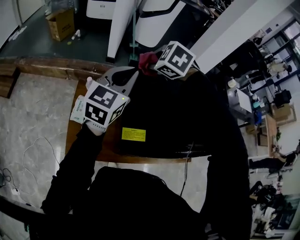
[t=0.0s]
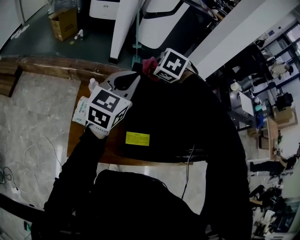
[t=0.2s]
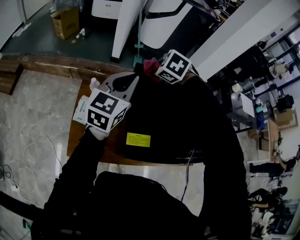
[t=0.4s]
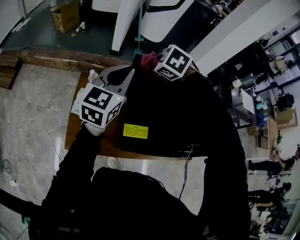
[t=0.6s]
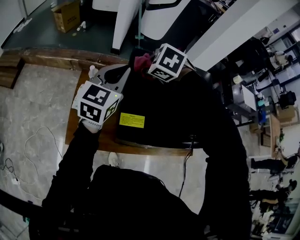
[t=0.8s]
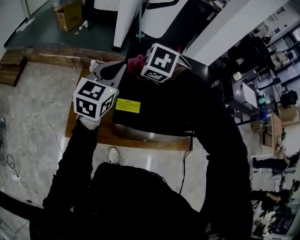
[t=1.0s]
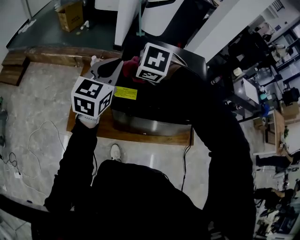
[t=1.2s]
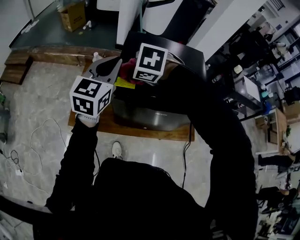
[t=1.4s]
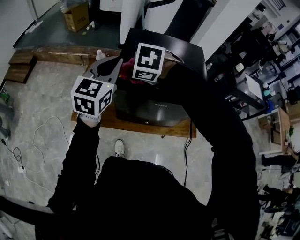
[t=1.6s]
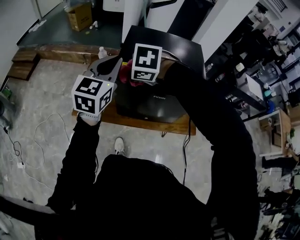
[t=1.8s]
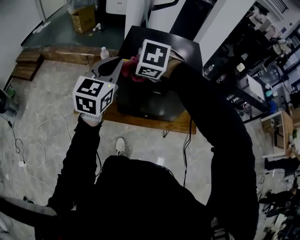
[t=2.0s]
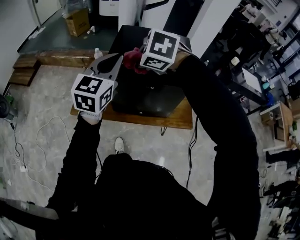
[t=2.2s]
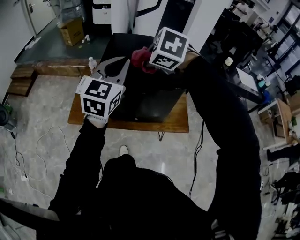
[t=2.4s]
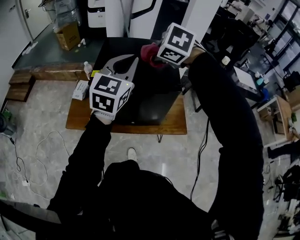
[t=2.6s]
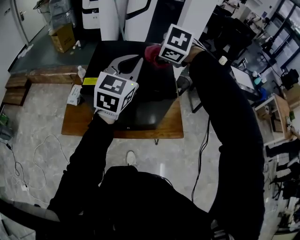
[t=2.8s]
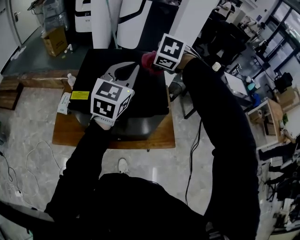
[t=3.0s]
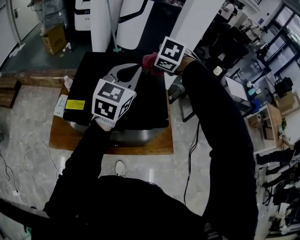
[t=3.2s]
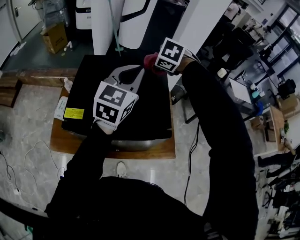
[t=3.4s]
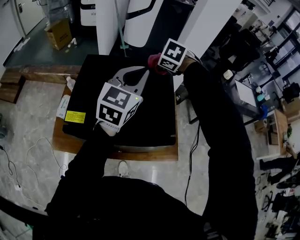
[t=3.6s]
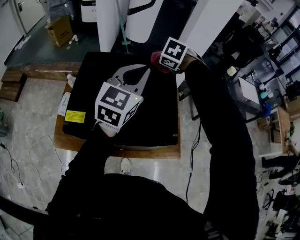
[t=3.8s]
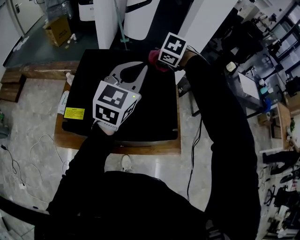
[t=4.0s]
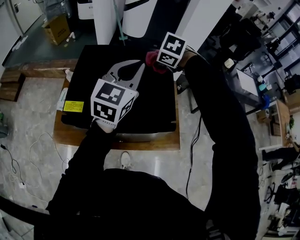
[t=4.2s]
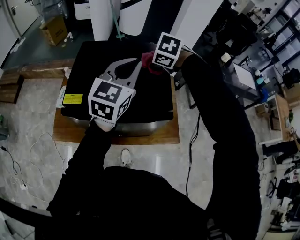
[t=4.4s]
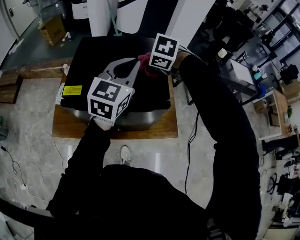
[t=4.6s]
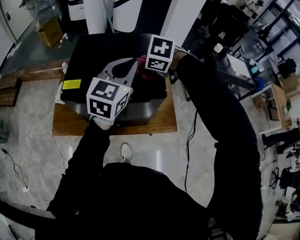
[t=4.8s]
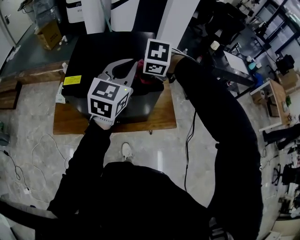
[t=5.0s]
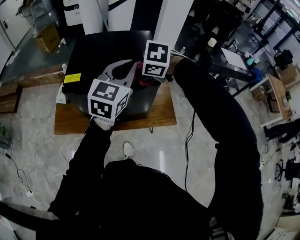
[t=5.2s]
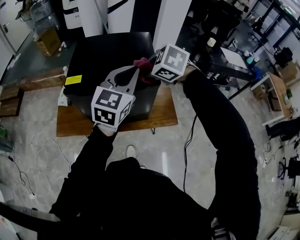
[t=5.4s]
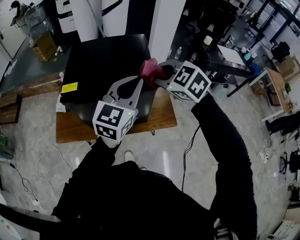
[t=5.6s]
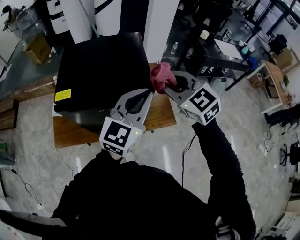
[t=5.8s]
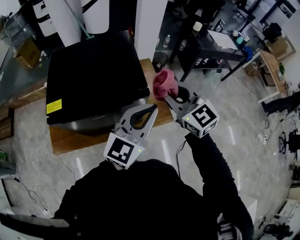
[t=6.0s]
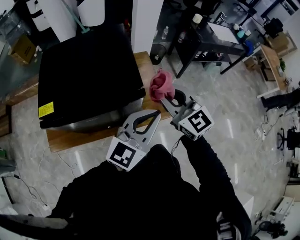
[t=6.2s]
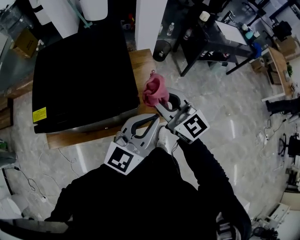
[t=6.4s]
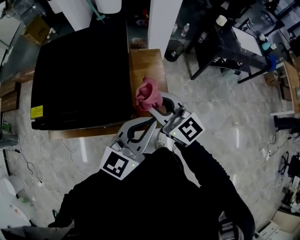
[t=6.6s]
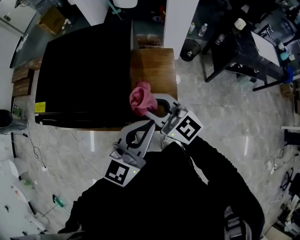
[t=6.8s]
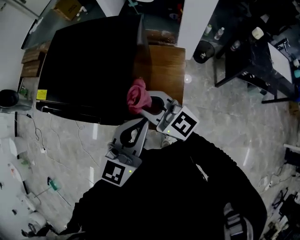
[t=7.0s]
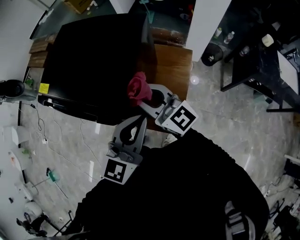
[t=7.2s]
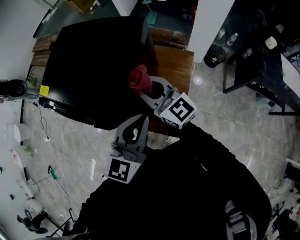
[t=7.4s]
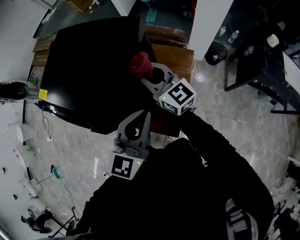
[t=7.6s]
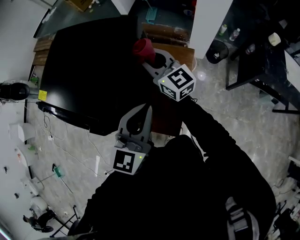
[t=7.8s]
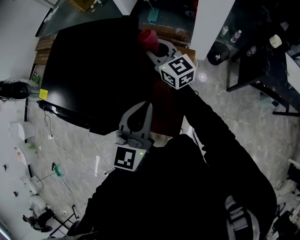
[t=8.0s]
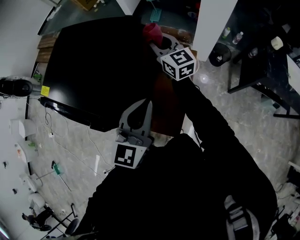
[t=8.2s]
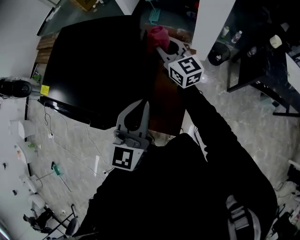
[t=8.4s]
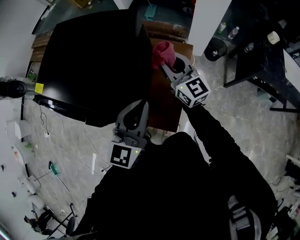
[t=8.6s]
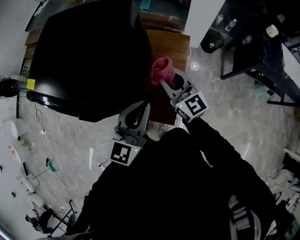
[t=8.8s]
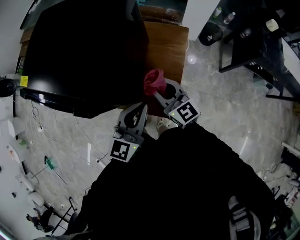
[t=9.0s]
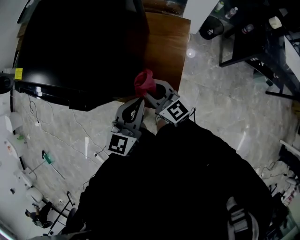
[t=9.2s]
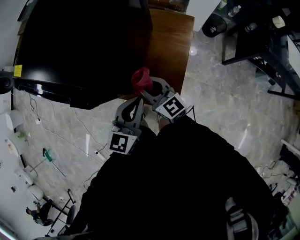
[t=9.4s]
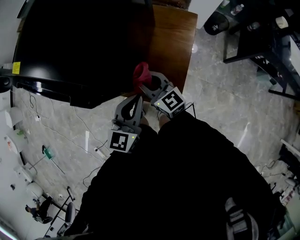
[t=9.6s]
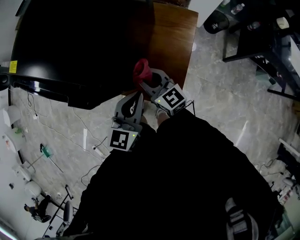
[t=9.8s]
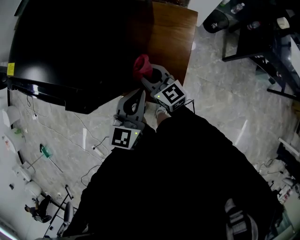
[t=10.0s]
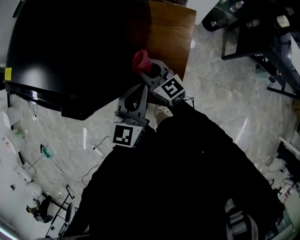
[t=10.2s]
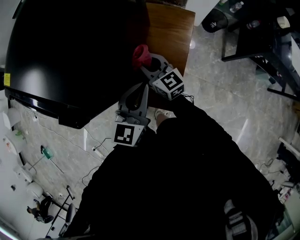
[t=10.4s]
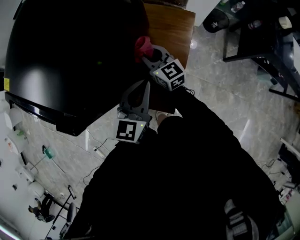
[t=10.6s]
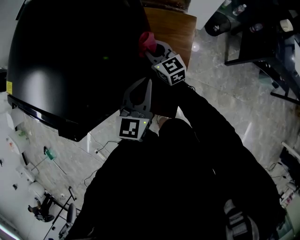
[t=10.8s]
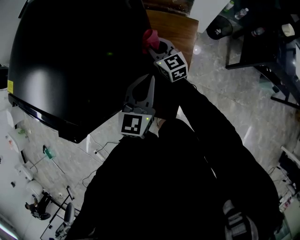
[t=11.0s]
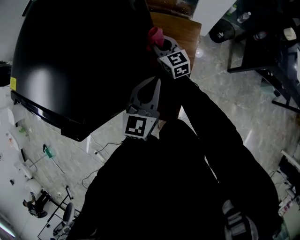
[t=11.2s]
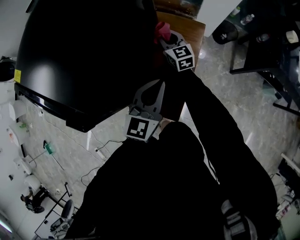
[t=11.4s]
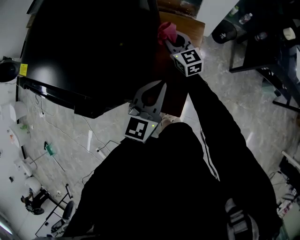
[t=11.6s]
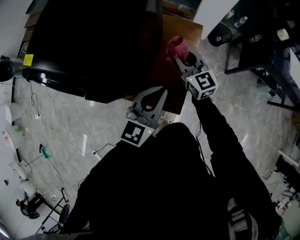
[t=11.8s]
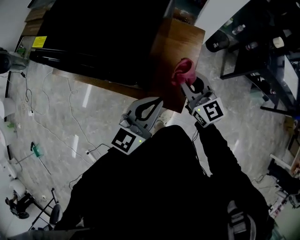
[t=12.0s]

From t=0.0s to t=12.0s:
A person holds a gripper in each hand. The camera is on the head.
From t=0.0s to t=1.6s: Both grippers travel together backward, roughly 25 cm.
From t=1.6s to t=3.0s: The right gripper shifts by some 30 cm, and turns by roughly 20 degrees; the left gripper moves some 25 cm.
From t=3.0s to t=4.4s: The right gripper travels downward by approximately 10 cm, and goes forward and returns, some 20 cm each way. The left gripper moves forward, approximately 5 cm.
From t=4.4s to t=6.0s: The left gripper ends up about 25 cm from where it was, and swivels some 30 degrees; the right gripper moves some 25 cm, and angles its fingers upward, by about 60 degrees.
From t=6.0s to t=7.6s: The right gripper changes place by roughly 30 cm, and changes its angle by roughly 50 degrees, while the left gripper moves about 25 cm, and swivels about 40 degrees.
From t=7.6s to t=9.0s: The right gripper is displaced downward and backward by approximately 20 cm. Meanwhile the left gripper travels downward by roughly 10 cm.
From t=9.0s to t=10.4s: The left gripper is displaced downward by roughly 5 cm. Meanwhile the right gripper moves downward and forward, about 15 cm.
From t=10.4s to t=12.0s: The right gripper shifts about 20 cm upward and backward; the left gripper shifts some 15 cm backward, upward and to the left.

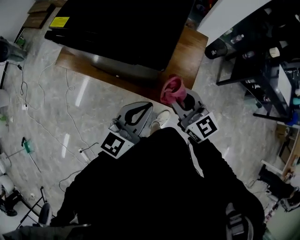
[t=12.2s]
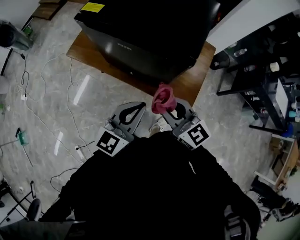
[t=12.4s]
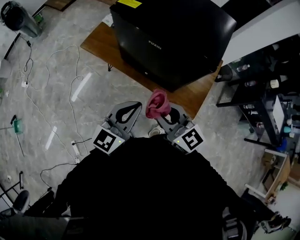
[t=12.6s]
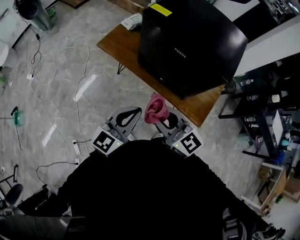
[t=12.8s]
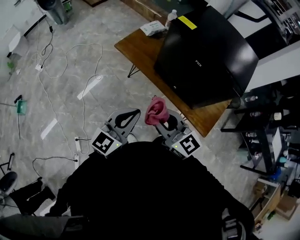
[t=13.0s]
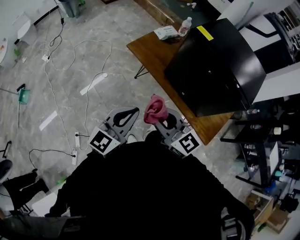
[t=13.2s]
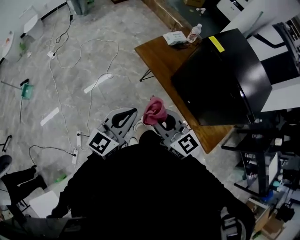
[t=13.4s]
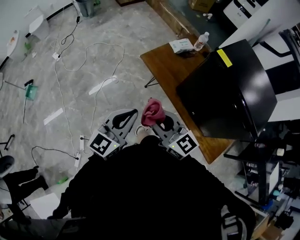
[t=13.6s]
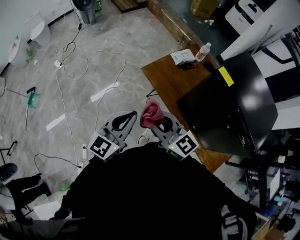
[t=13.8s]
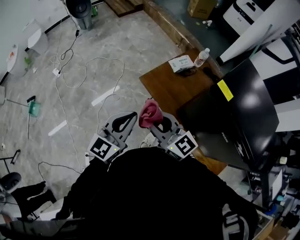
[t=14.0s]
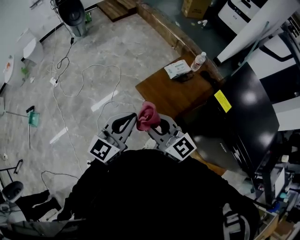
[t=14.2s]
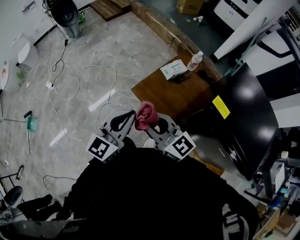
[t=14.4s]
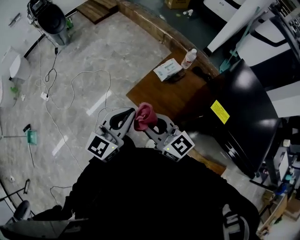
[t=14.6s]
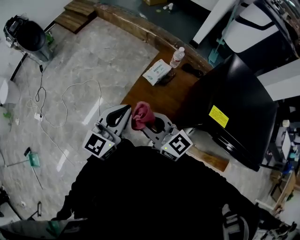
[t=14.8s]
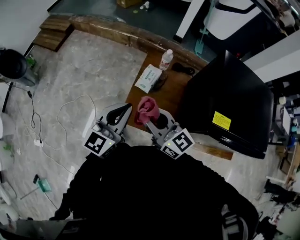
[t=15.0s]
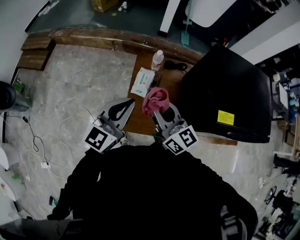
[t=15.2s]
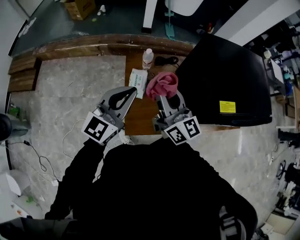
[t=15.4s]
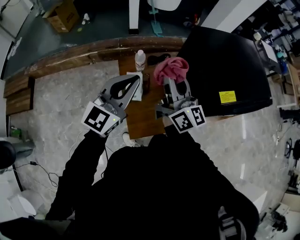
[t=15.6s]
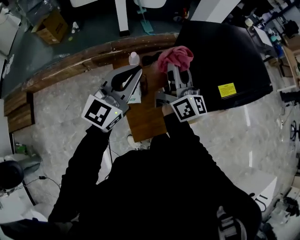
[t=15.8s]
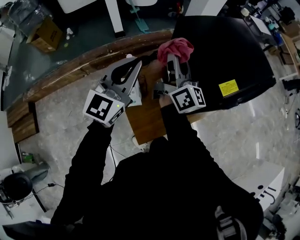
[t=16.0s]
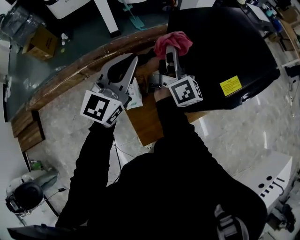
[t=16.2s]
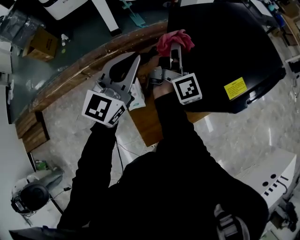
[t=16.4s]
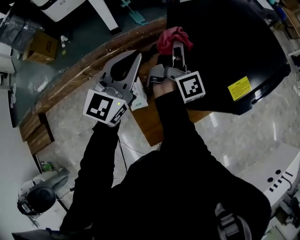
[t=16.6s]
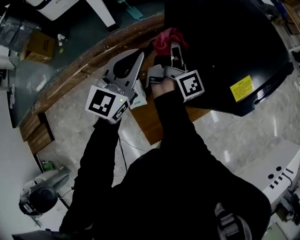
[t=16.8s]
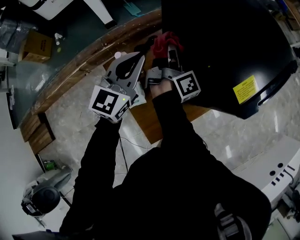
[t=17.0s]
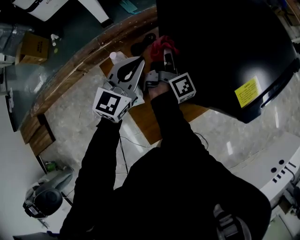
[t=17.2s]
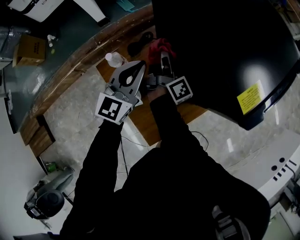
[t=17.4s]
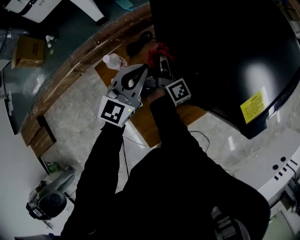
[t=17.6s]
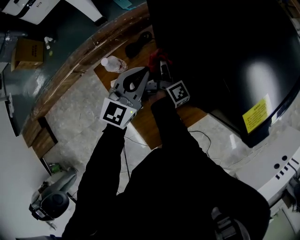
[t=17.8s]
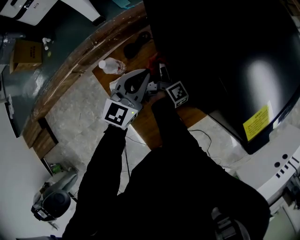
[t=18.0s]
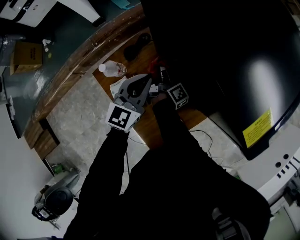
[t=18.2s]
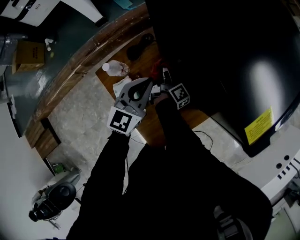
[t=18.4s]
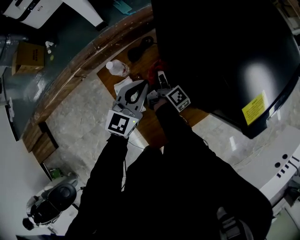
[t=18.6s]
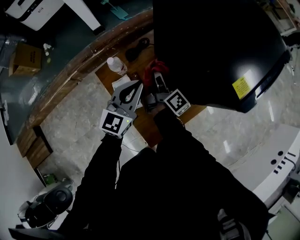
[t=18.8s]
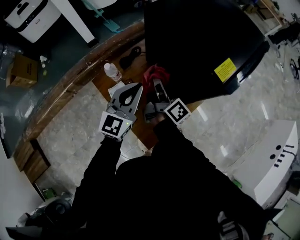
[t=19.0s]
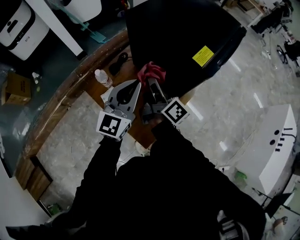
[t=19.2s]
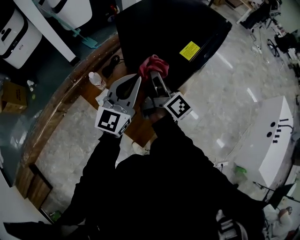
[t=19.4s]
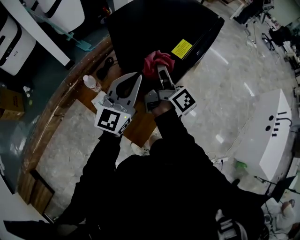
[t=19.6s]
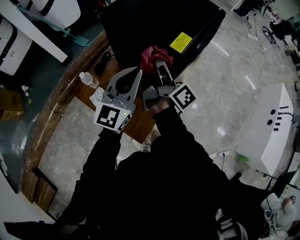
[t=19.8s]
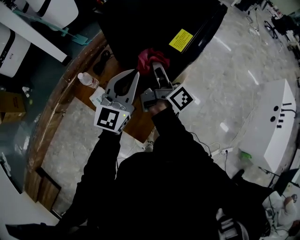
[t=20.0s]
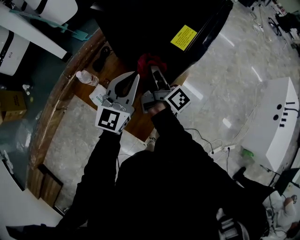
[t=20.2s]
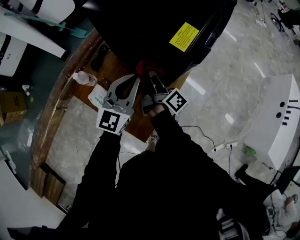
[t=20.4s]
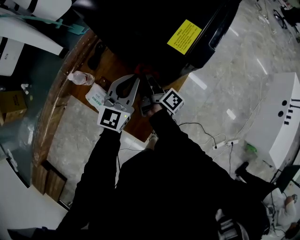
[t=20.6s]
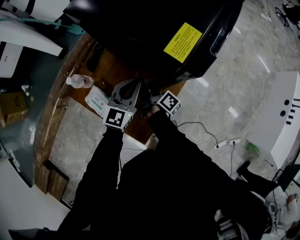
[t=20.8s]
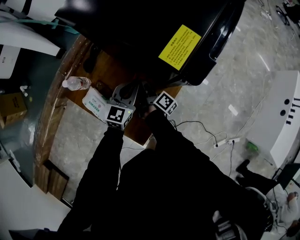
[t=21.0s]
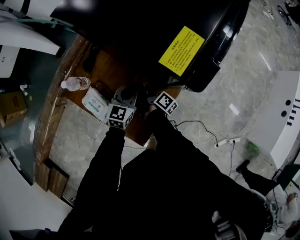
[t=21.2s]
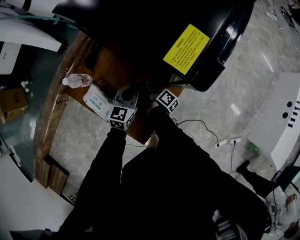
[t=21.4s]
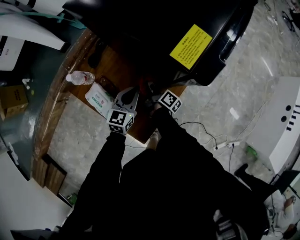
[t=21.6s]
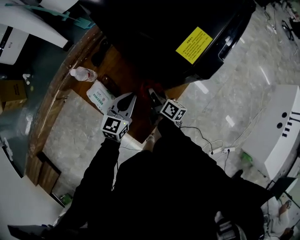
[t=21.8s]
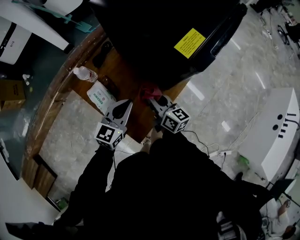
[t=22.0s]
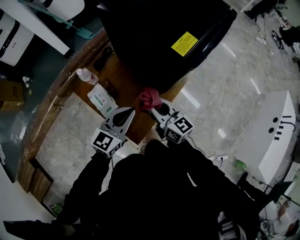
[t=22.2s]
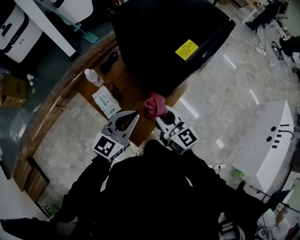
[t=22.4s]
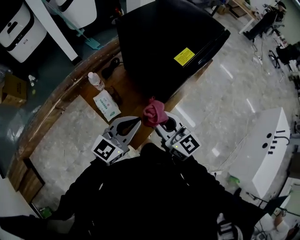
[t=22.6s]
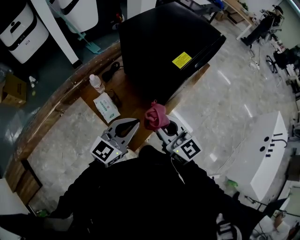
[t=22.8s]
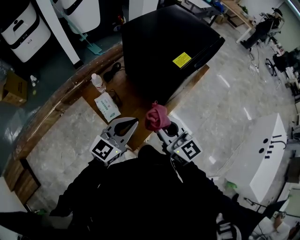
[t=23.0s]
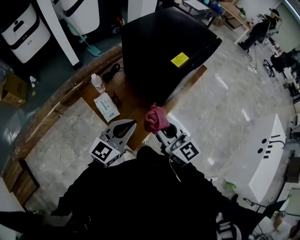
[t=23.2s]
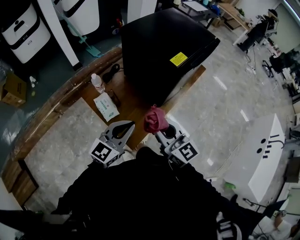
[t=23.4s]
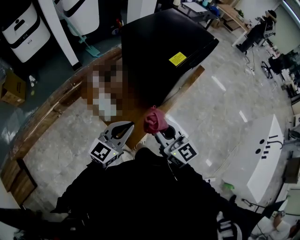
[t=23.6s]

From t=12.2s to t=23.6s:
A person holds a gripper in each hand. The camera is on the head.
From t=12.2s to t=13.6s: The two grippers travel together, approximately 60 cm. The left gripper turns by roughly 30 degrees, while the right gripper rotates roughly 40 degrees.
From t=13.6s to t=15.0s: The two grippers travel together, about 50 cm. The right gripper rotates approximately 40 degrees. The left gripper changes its angle by roughly 30 degrees.
From t=15.0s to t=16.4s: The right gripper goes upward and returns, about 10 cm each way, and rotates approximately 90 degrees. Meanwhile the left gripper moves approximately 30 cm, and turns by about 40 degrees.
From t=16.4s to t=17.8s: Both grippers travel together downward, approximately 25 cm. The right gripper changes its angle by approximately 30 degrees.
From t=17.8s to t=19.4s: The left gripper heads upward, backward and to the right, covering roughly 25 cm, and rotates some 20 degrees; the right gripper travels upward and backward by approximately 35 cm, and turns by roughly 30 degrees.
From t=19.4s to t=20.8s: The grippers both shift downward by approximately 25 cm. The right gripper swivels about 30 degrees.
From t=20.8s to t=22.2s: The left gripper travels backward and upward by approximately 15 cm, while the right gripper goes roughly 20 cm upward and backward, and rotates around the line of its fingers by some 60 degrees, counterclockwise from behind.
From t=22.2s to t=23.6s: The left gripper shifts some 15 cm backward and upward, while the right gripper moves upward and backward, some 20 cm.
